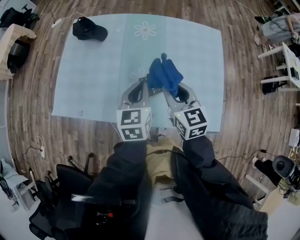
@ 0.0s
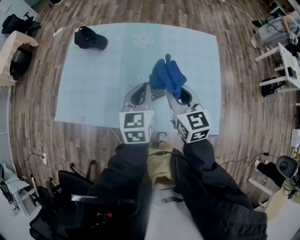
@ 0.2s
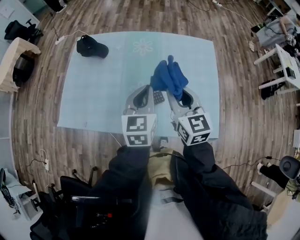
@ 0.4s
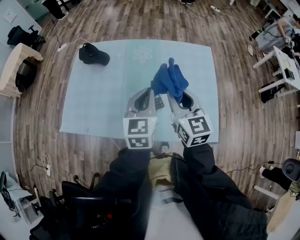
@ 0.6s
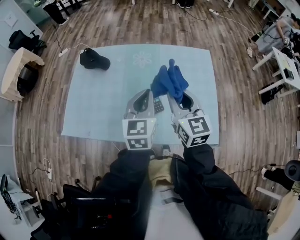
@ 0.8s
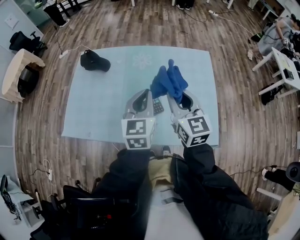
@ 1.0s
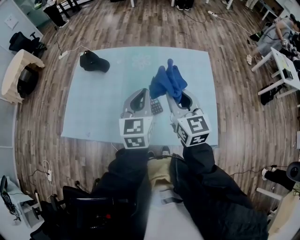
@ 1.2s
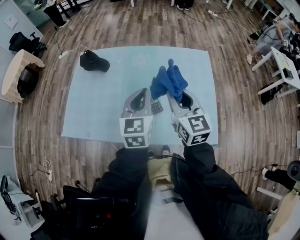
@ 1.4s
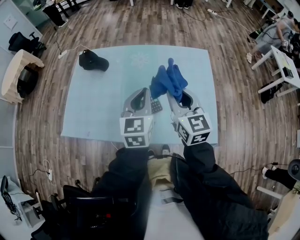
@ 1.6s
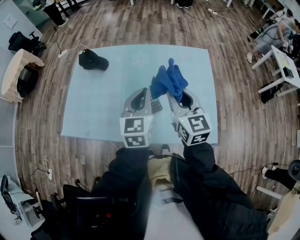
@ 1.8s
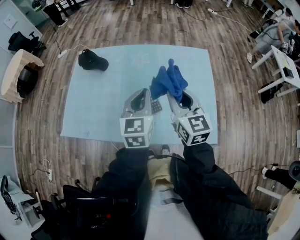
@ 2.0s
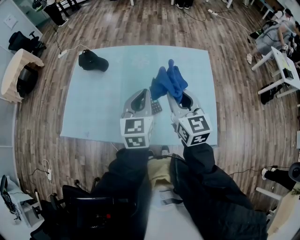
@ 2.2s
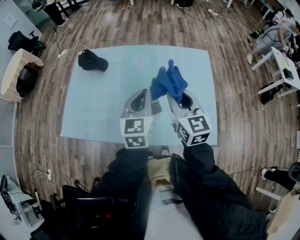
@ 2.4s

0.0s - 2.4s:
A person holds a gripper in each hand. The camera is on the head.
0.0s - 1.2s: Both grippers move upward, some 10 cm.
1.2s - 2.4s: There are only small adjustments of the grippers.

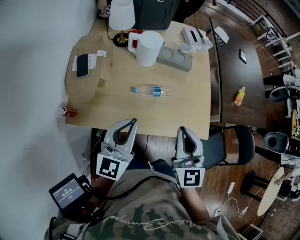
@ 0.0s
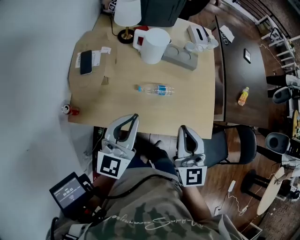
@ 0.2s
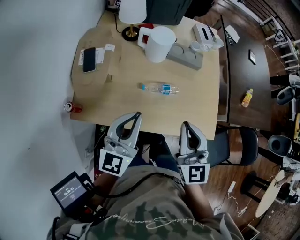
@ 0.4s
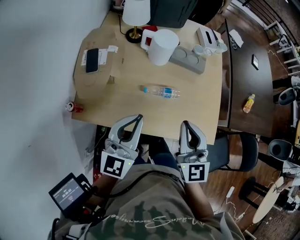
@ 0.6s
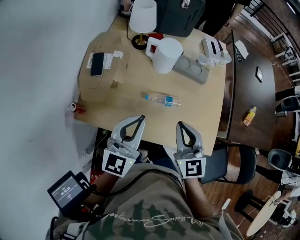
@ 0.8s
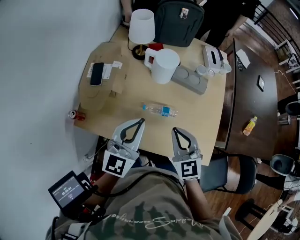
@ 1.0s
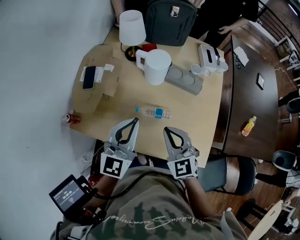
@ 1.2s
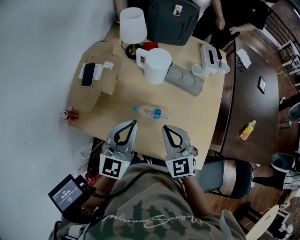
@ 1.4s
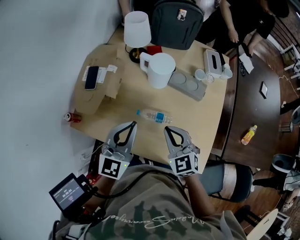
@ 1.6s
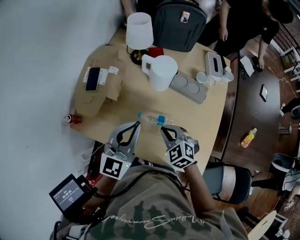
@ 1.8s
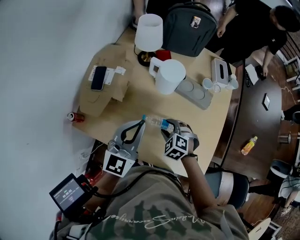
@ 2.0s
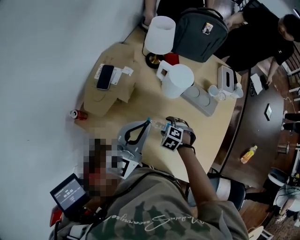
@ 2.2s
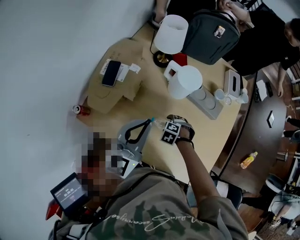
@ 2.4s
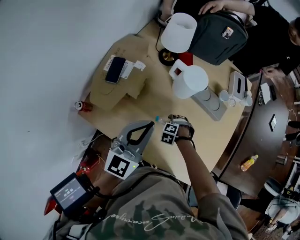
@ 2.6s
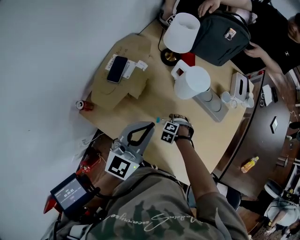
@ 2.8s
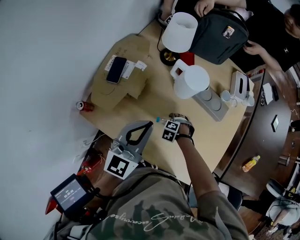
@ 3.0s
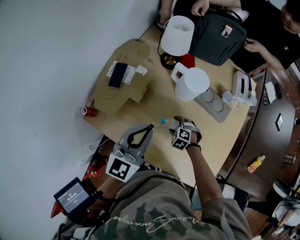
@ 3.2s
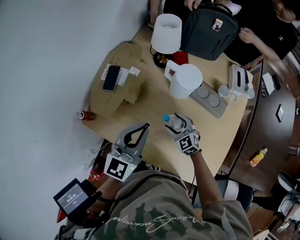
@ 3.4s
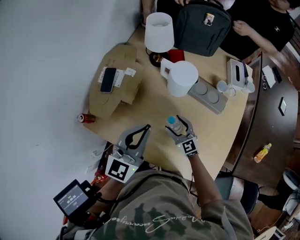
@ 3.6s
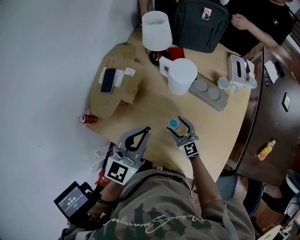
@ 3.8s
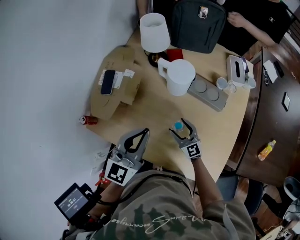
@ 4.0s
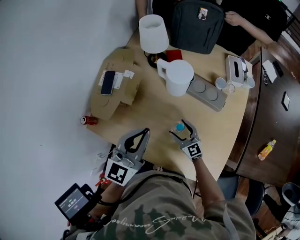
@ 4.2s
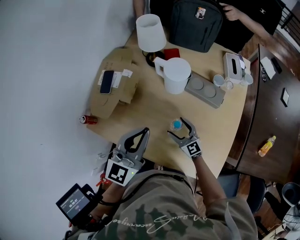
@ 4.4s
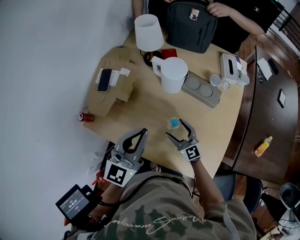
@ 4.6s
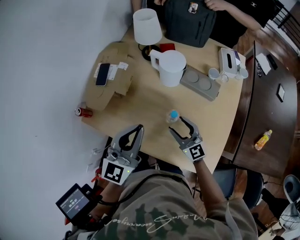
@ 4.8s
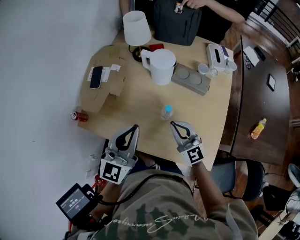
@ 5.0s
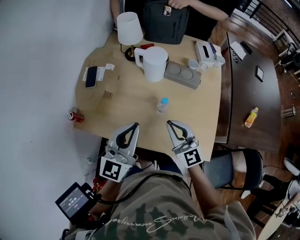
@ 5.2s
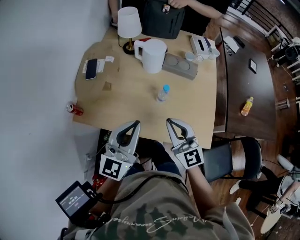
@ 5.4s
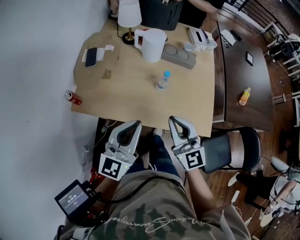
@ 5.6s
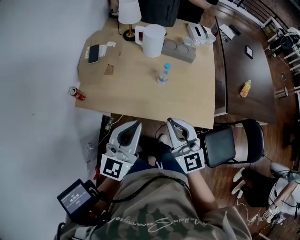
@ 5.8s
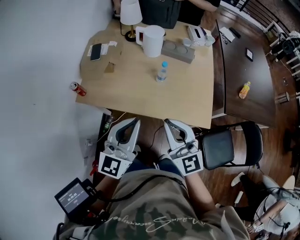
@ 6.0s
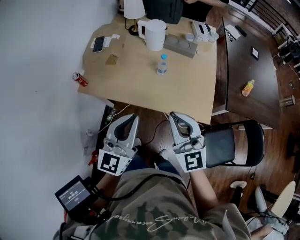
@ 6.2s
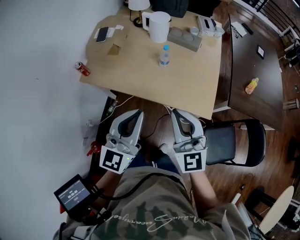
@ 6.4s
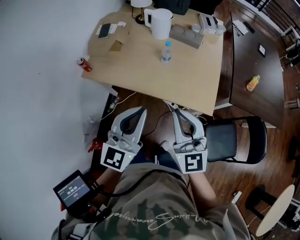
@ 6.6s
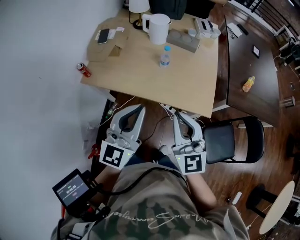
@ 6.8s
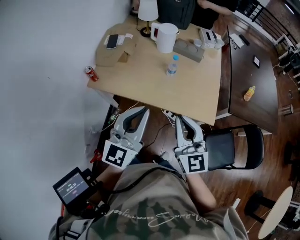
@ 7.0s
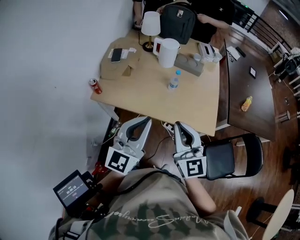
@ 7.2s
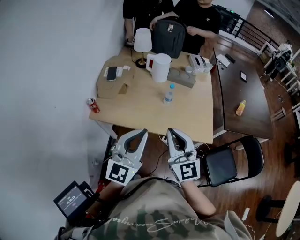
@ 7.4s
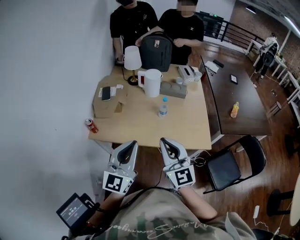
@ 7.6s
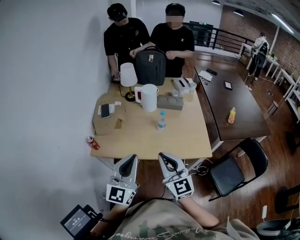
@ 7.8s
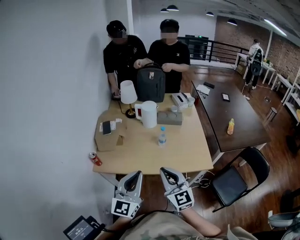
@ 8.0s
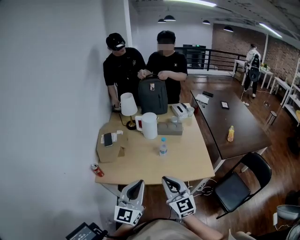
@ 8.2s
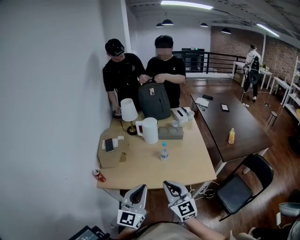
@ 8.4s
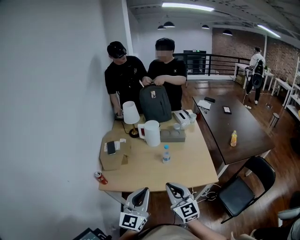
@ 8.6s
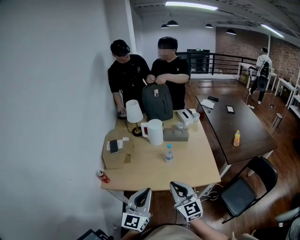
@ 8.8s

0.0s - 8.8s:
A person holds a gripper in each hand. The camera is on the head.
0.0s - 1.4s: The right gripper is displaced forward and downward by roughly 15 cm, and rotates about 30 degrees; the left gripper travels forward by roughly 10 cm.
1.4s - 3.0s: The right gripper travels downward by some 35 cm, tips its fingers downward by about 60 degrees, and opens its fingers, while the left gripper ends up approximately 5 cm from where it was.
3.0s - 4.4s: The right gripper heads upward, covering some 15 cm, and angles its fingers upward, by some 70 degrees.
4.4s - 5.8s: The right gripper is displaced backward and upward by approximately 40 cm, swivels some 30 degrees, and closes its fingers. The left gripper is displaced backward by roughly 25 cm.
5.8s - 7.4s: The two grippers go about 10 cm backward and upward. The left gripper moves approximately 10 cm to the right and comes back, while the right gripper moves about 10 cm to the right and comes back.
7.4s - 8.8s: The grippers move only a little.

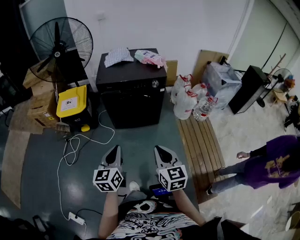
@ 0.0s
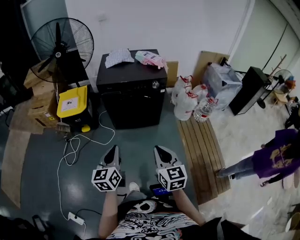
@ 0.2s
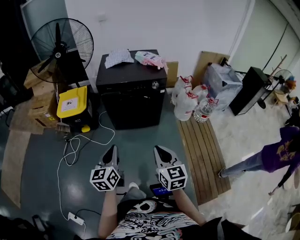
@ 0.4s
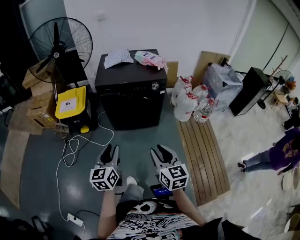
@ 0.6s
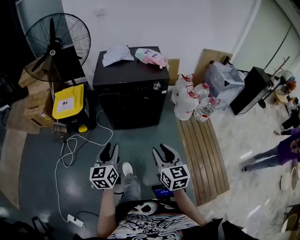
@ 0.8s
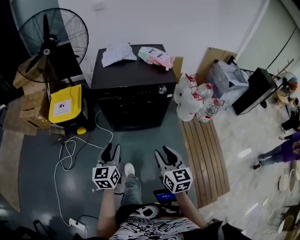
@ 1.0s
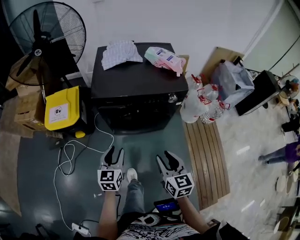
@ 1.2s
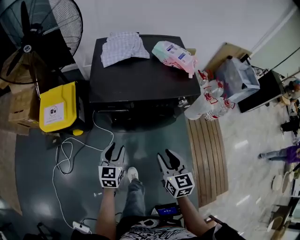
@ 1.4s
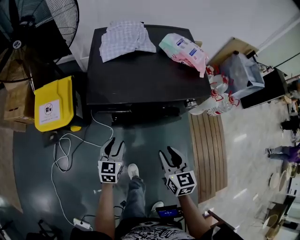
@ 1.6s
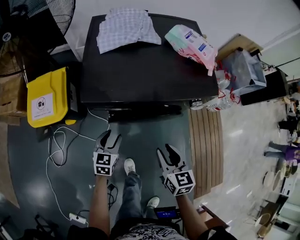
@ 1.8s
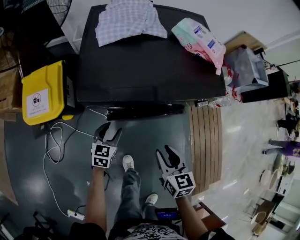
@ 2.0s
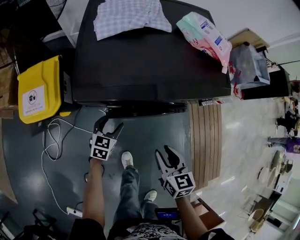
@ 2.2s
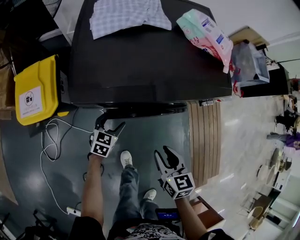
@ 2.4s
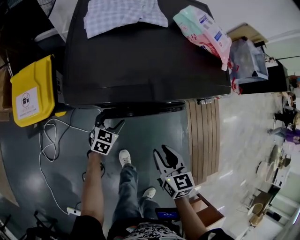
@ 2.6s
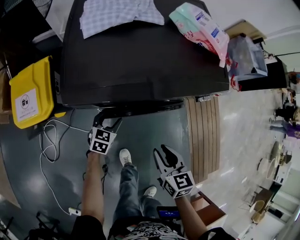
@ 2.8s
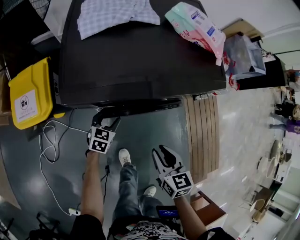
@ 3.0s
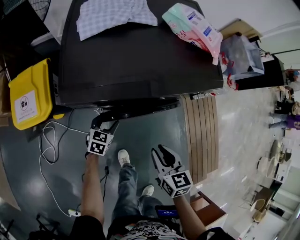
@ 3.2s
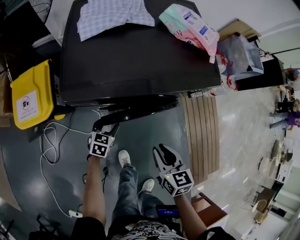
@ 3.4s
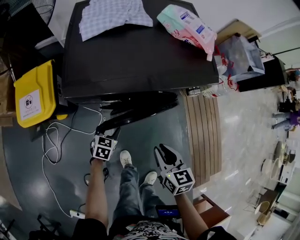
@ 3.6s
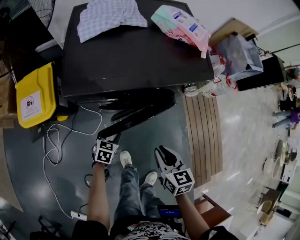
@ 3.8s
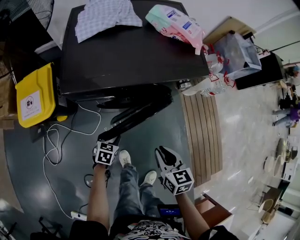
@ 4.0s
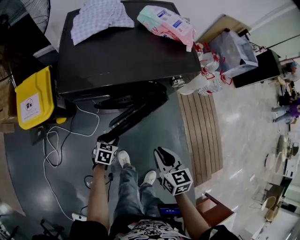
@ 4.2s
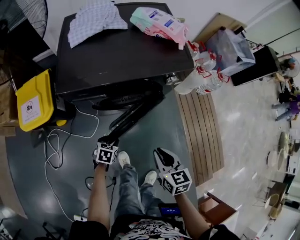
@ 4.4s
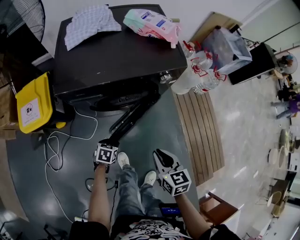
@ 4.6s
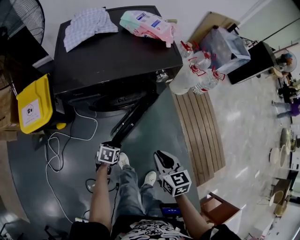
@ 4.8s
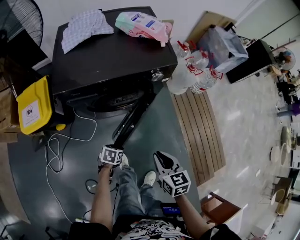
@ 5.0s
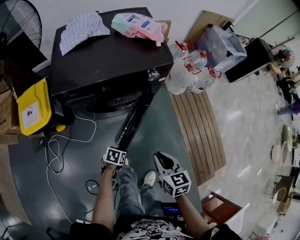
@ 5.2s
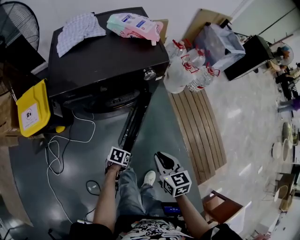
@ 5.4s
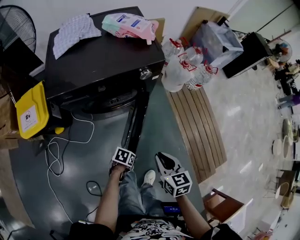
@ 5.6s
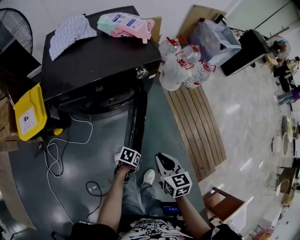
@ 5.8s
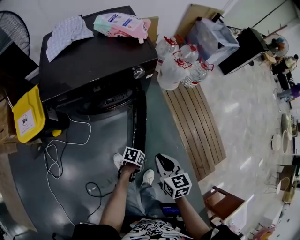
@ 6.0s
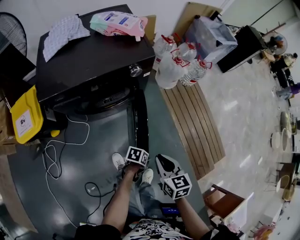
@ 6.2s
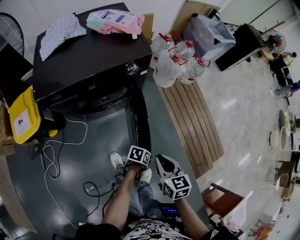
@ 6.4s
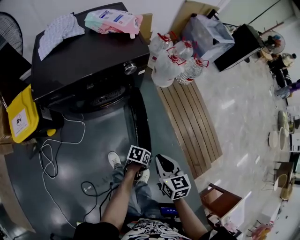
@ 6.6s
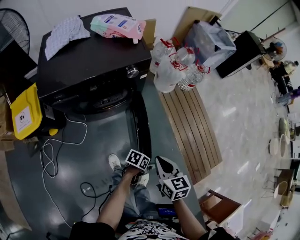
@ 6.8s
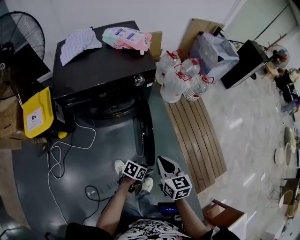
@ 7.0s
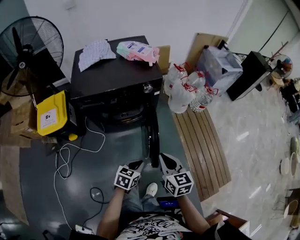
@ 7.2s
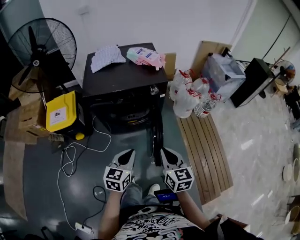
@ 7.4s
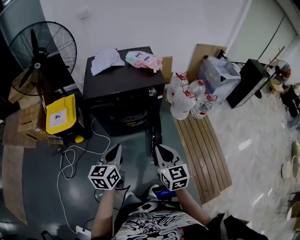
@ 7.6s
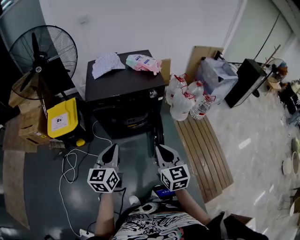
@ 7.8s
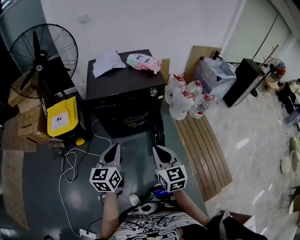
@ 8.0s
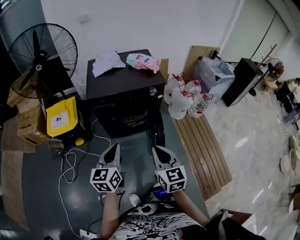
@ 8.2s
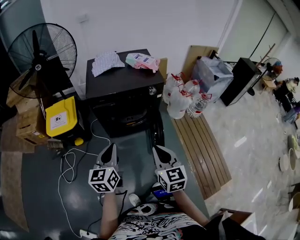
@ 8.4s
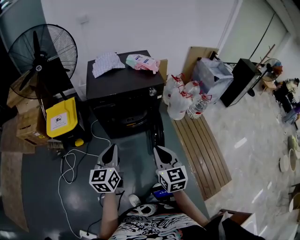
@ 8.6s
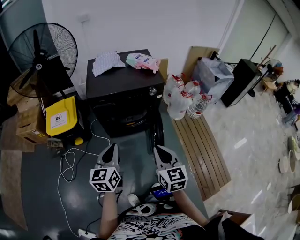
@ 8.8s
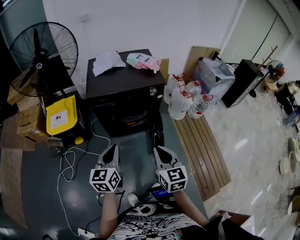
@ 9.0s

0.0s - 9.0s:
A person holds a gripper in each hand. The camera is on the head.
0.0s - 1.6s: Both grippers travel together forward and downward, about 50 cm. The right gripper opens its fingers. Meanwhile the left gripper changes its angle by some 20 degrees, and opens its fingers.
1.6s - 3.0s: The right gripper shifts about 10 cm downward. The left gripper goes about 20 cm downward and forward, and rotates approximately 20 degrees.
3.0s - 4.4s: The grippers both shift backward and to the right by roughly 15 cm.
4.4s - 6.0s: The right gripper shifts by some 15 cm. The left gripper moves approximately 30 cm, and swivels some 40 degrees.
6.0s - 7.6s: The right gripper goes some 20 cm upward, and changes its angle by some 20 degrees; the left gripper moves upward, approximately 40 cm, tips its fingers upward by approximately 30 degrees, and closes up.
7.6s - 9.0s: The left gripper changes place by approximately 5 cm. Meanwhile the right gripper ends up roughly 5 cm from where it was.

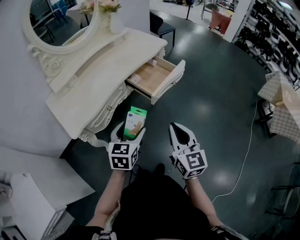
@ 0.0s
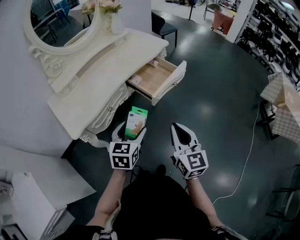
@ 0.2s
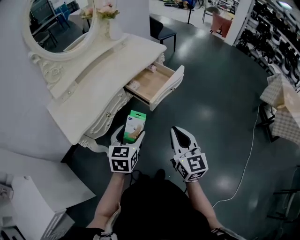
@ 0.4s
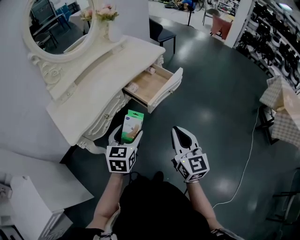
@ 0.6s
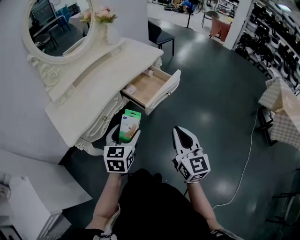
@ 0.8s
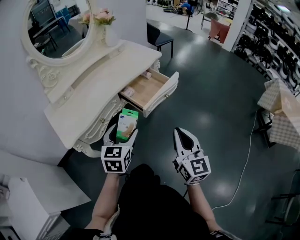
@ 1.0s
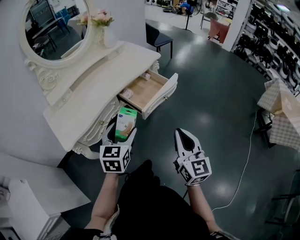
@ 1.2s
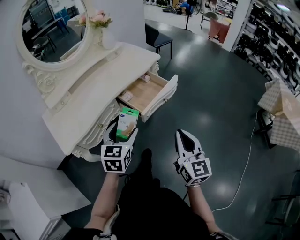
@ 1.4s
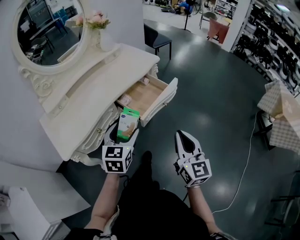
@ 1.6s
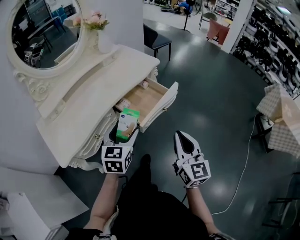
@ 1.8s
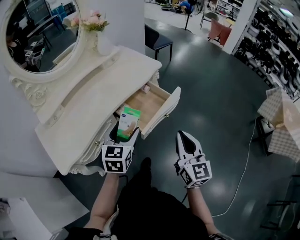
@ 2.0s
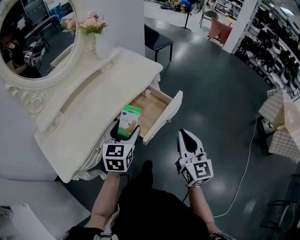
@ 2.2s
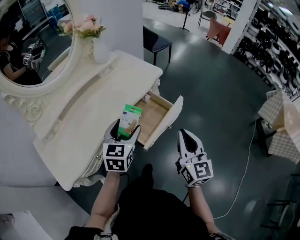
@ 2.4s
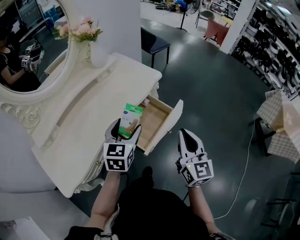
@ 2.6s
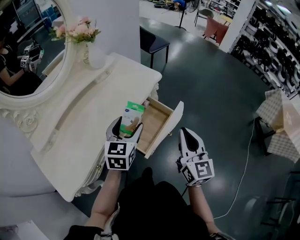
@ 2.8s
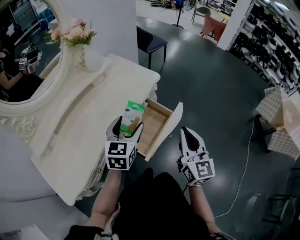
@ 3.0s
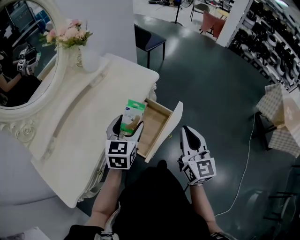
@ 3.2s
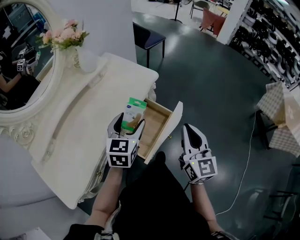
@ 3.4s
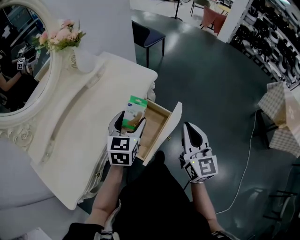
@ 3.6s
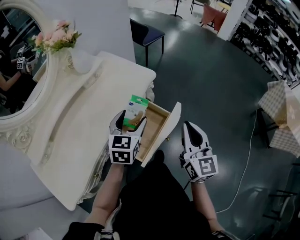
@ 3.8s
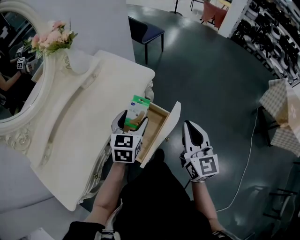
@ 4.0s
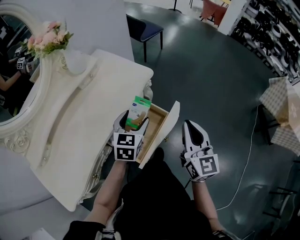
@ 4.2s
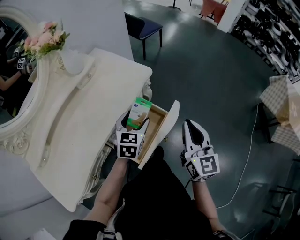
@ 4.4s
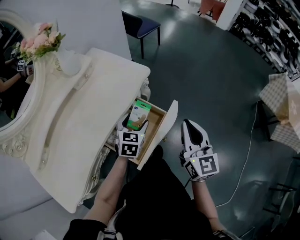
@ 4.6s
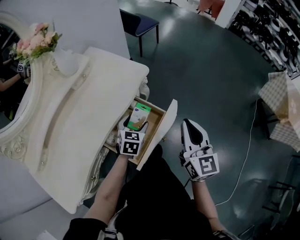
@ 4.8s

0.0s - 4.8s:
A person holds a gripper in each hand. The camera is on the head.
0.0s - 1.6s: The right gripper is displaced to the right and forward by roughly 15 cm, while the left gripper shifts about 10 cm forward and to the right.
1.6s - 3.2s: Both grippers move forward, some 25 cm.
3.2s - 4.8s: The left gripper travels downward, forward and to the right by some 20 cm, and turns by about 20 degrees. Meanwhile the right gripper shifts about 10 cm forward.
